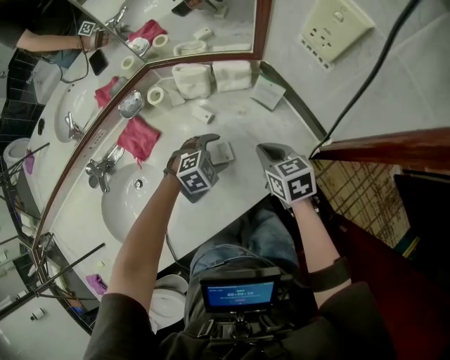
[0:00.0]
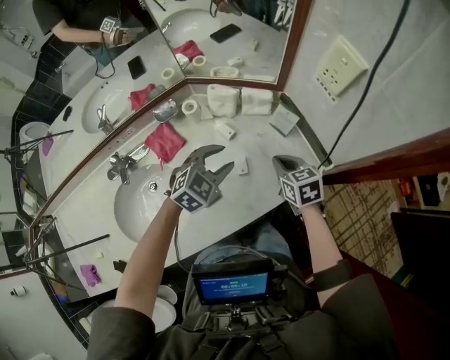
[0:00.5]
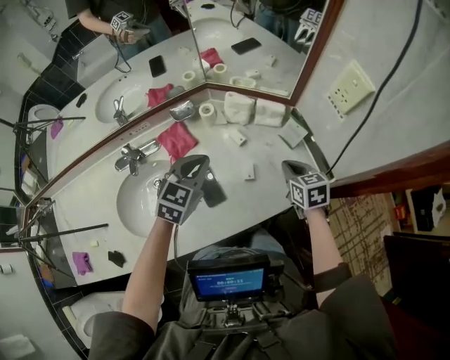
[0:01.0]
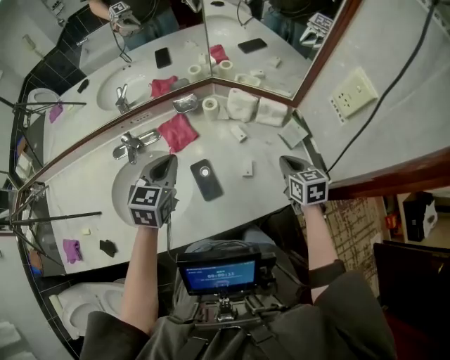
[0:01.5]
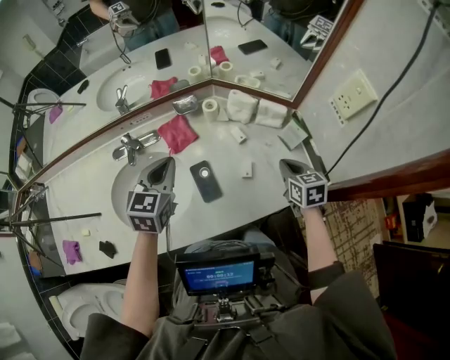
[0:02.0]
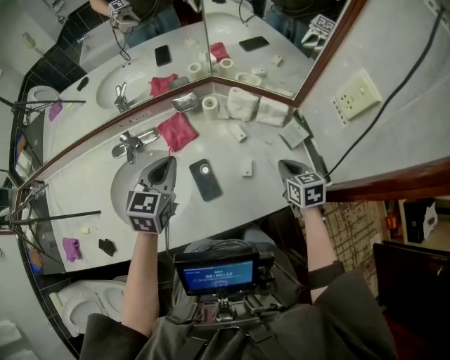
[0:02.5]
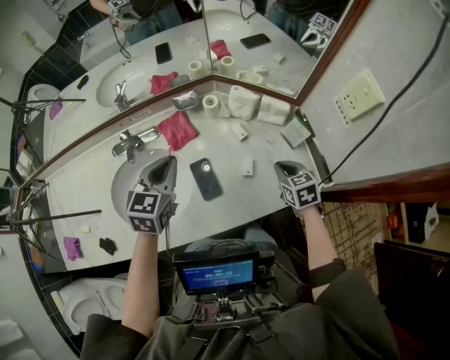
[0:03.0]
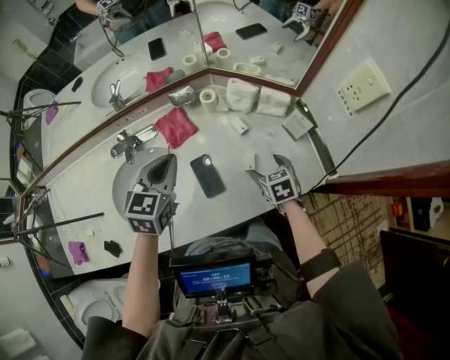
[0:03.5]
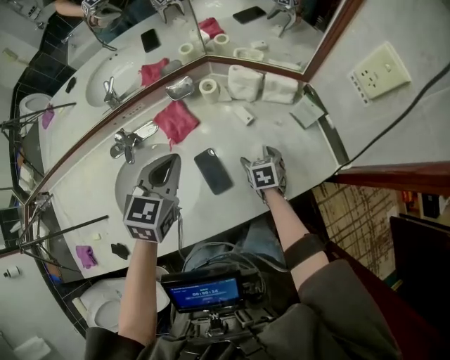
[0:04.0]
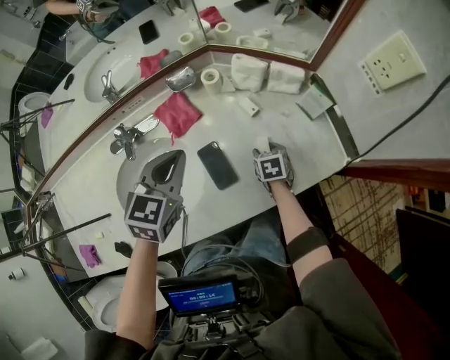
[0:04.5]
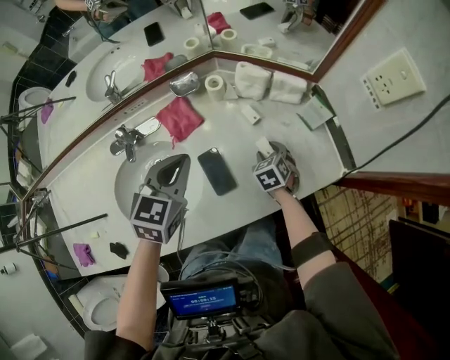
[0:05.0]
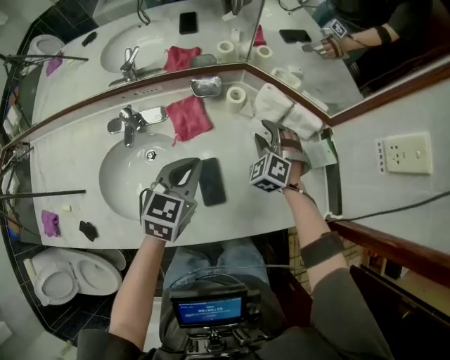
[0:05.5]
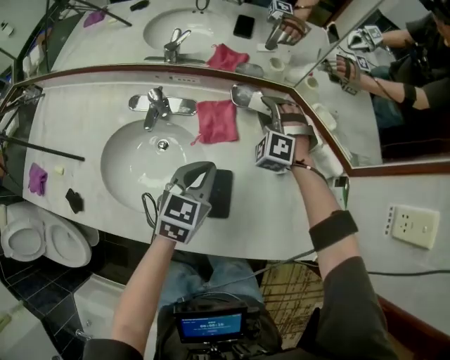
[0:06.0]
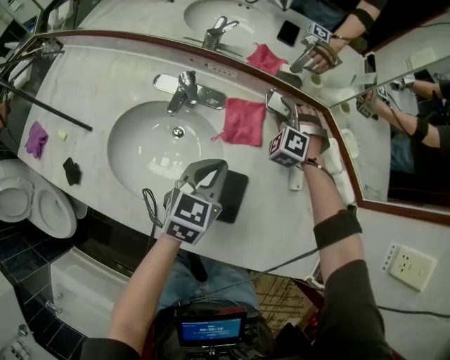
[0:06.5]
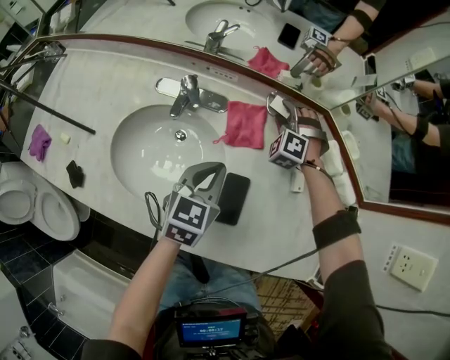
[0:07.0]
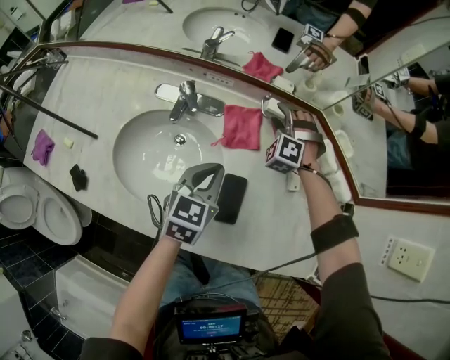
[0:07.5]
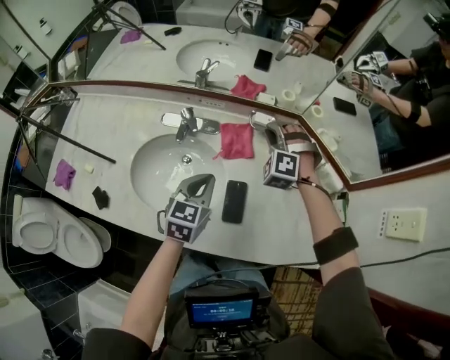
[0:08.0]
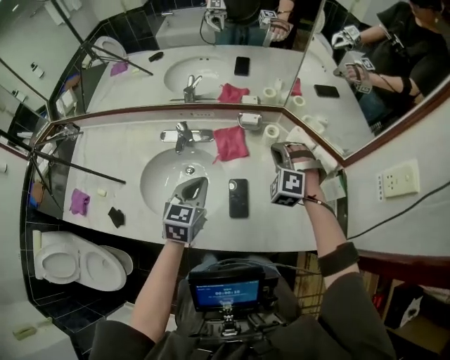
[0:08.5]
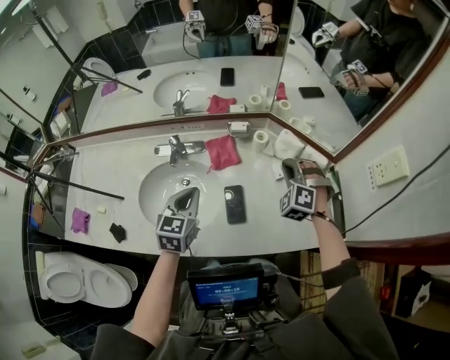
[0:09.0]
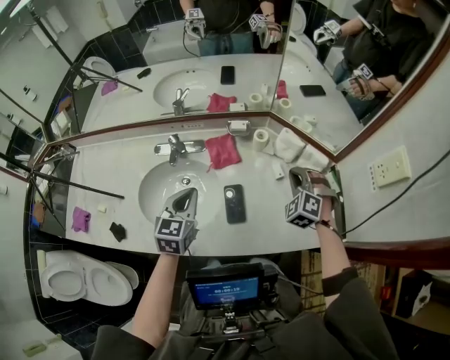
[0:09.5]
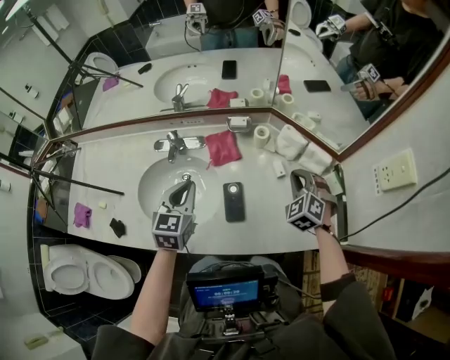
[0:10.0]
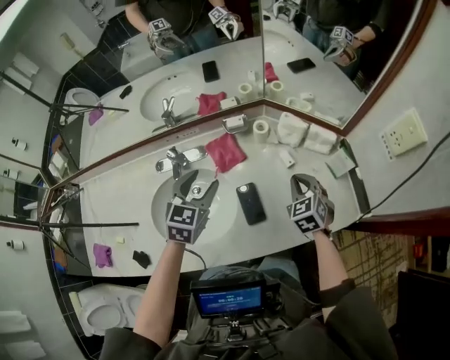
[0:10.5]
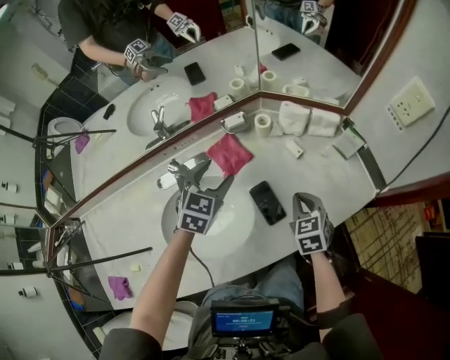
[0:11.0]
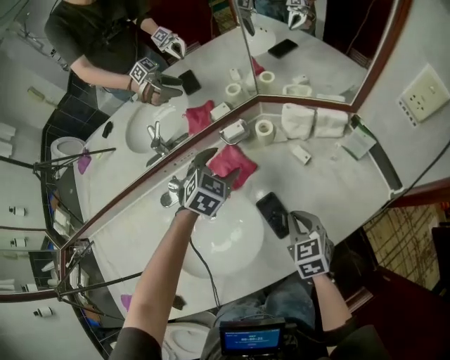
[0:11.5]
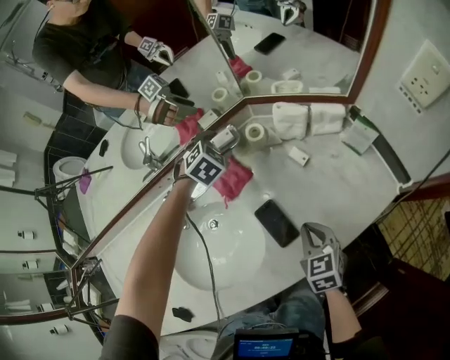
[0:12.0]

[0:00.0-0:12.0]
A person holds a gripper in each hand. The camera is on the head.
0:00.0 to 0:02.0: The right gripper is displaced upward by some 5 cm. The left gripper shifts roughly 30 cm upward, tips its fingers upward by about 30 degrees, and closes up.
0:02.0 to 0:04.0: The right gripper shifts approximately 20 cm downward and to the left, and opens its fingers.
0:04.0 to 0:06.0: The right gripper heads forward, to the left and upward, covering roughly 30 cm, rolls counterclockwise, seen from behind, by roughly 100 degrees, and closes. The left gripper goes some 10 cm downward, and changes its angle by about 20 degrees.
0:06.0 to 0:08.0: The right gripper moves upward and backward, approximately 10 cm. The left gripper goes about 5 cm to the left.
0:08.0 to 0:10.0: The right gripper shifts about 25 cm to the right and backward, and rotates roughly 40 degrees. Meanwhile the left gripper heads upward, covering approximately 5 cm.
0:10.0 to 0:12.0: The right gripper is displaced backward, downward and to the left by roughly 20 cm, and twists about 60 degrees clockwise, seen from behind, while the left gripper is displaced forward and downward by approximately 35 cm, rotates around the line of its fingers by approximately 60 degrees, clockwise from behind, and opens.

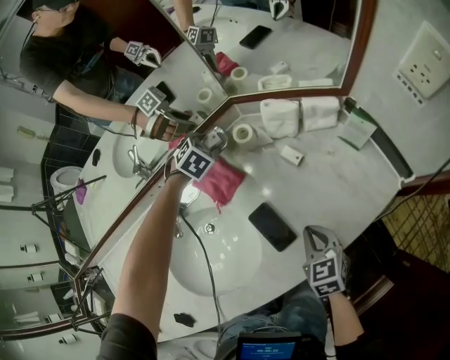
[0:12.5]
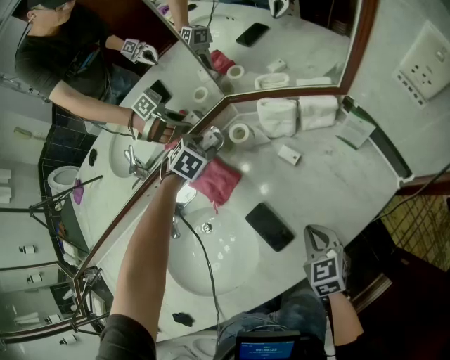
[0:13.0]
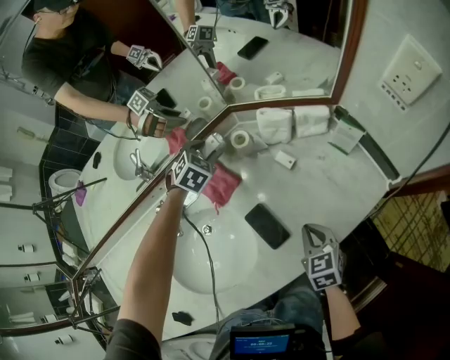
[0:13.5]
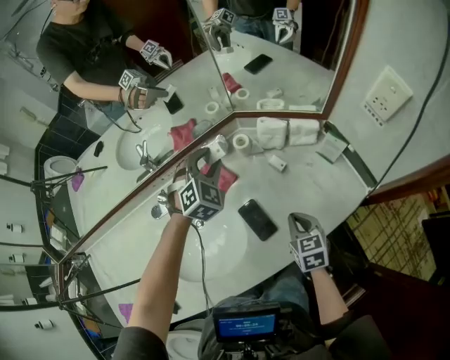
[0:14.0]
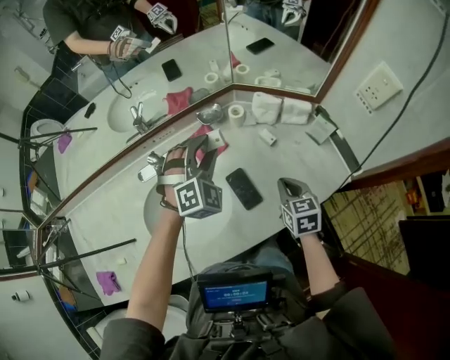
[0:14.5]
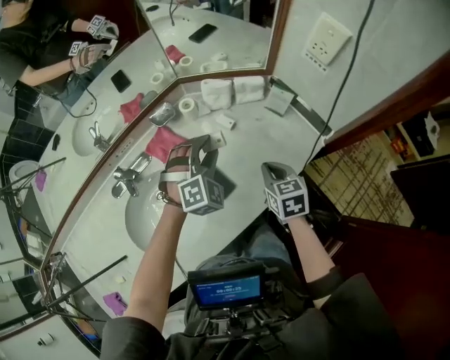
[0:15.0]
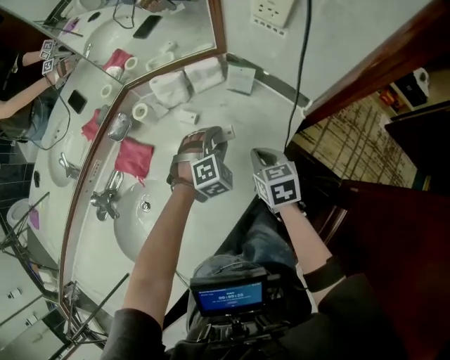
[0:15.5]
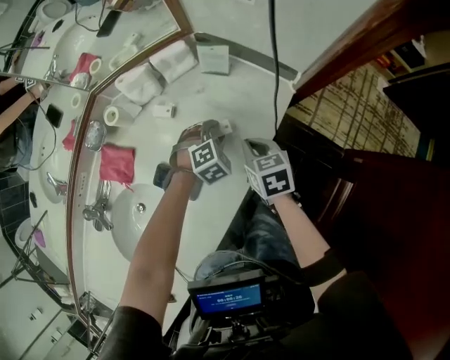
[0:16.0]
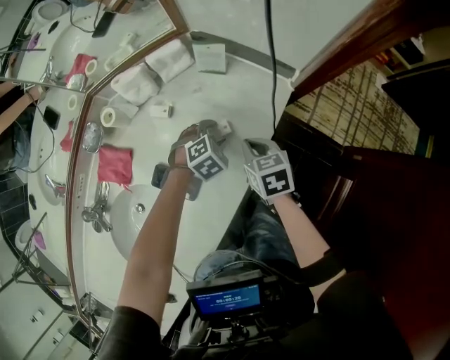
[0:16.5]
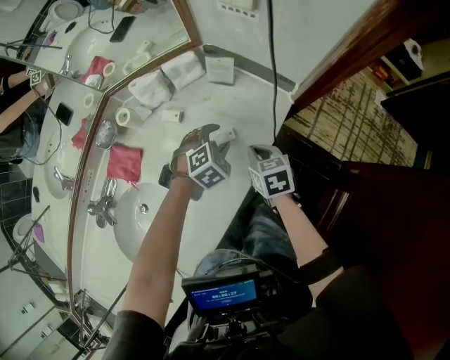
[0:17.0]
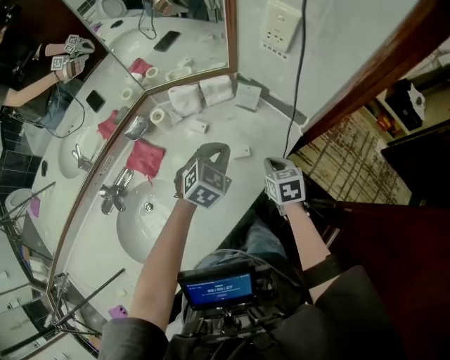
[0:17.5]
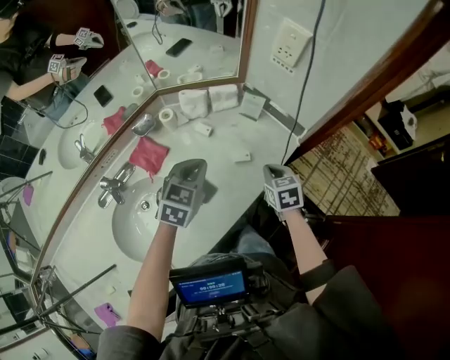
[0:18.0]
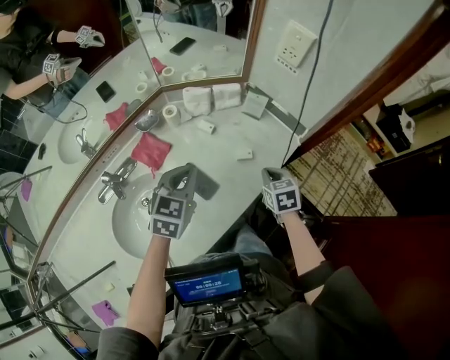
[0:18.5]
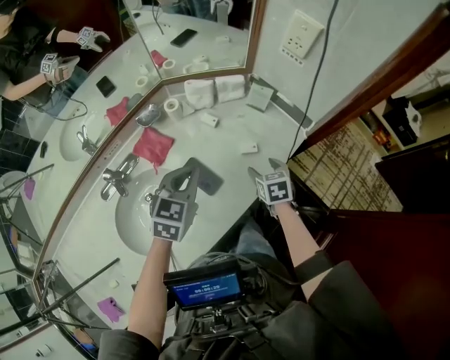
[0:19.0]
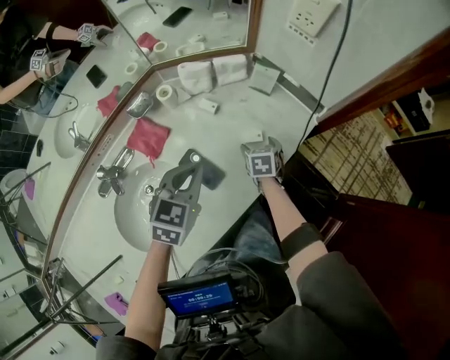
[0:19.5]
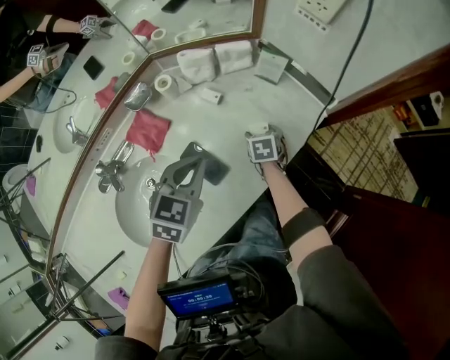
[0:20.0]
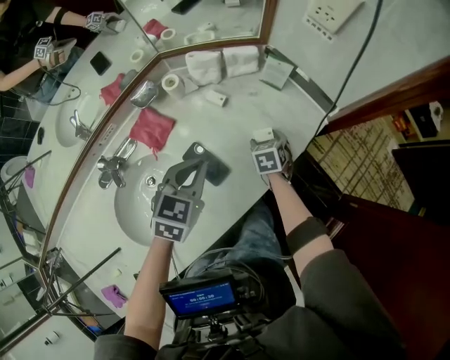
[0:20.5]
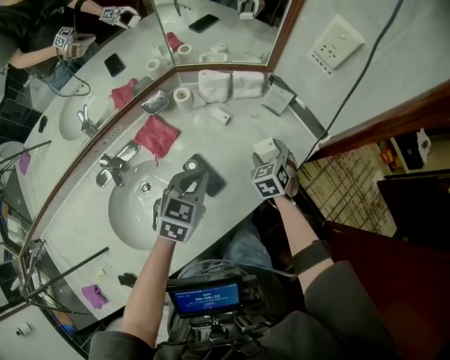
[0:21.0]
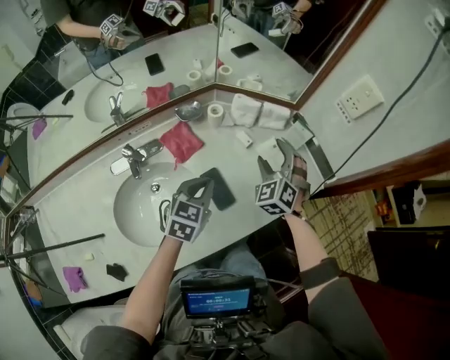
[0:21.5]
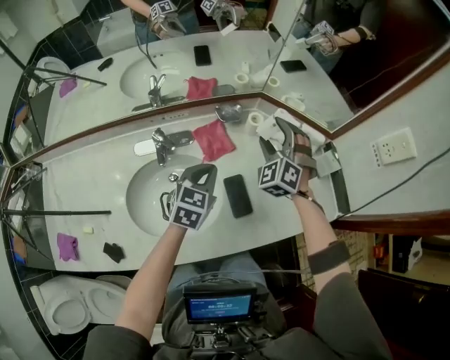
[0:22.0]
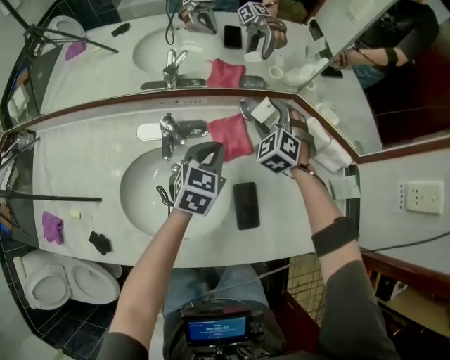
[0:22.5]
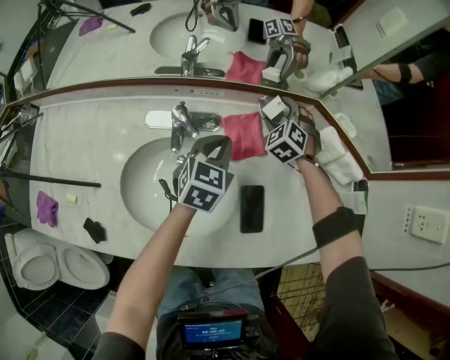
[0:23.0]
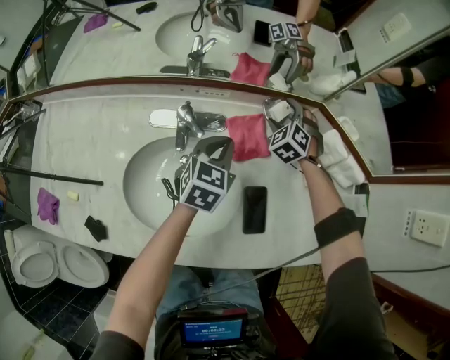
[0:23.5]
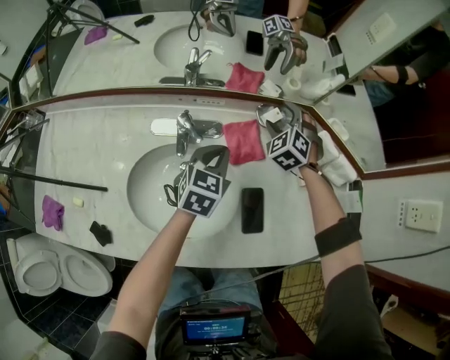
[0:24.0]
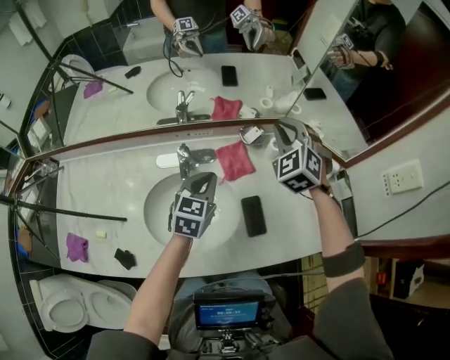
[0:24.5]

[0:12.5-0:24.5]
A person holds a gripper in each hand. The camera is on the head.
0:12.5 to 0:14.5: The left gripper shifts about 30 cm upward and backward, and tilts its fingers roughly 40 degrees upward, while the right gripper travels upward by about 10 cm.
0:14.5 to 0:16.5: The left gripper shifts approximately 30 cm downward, and tilts its fingers about 40 degrees downward. The right gripper changes place by approximately 20 cm, and changes its angle by some 30 degrees.
0:16.5 to 0:18.5: The left gripper shifts some 35 cm upward, to the left and backward, angles its fingers upward, by about 40 degrees, and closes up, while the right gripper is displaced upward by roughly 10 cm.
0:18.5 to 0:20.5: The right gripper moves downward and forward, roughly 15 cm, and opens up. Meanwhile the left gripper moves downward, approximately 5 cm.
0:20.5 to 0:22.5: The right gripper shifts by about 40 cm, and rolls counterclockwise, seen from behind, by approximately 80 degrees, while the left gripper moves about 25 cm, and swivels some 40 degrees.
0:22.5 to 0:24.5: The right gripper moves upward, some 20 cm, and closes. The left gripper moves upward and backward, about 10 cm.

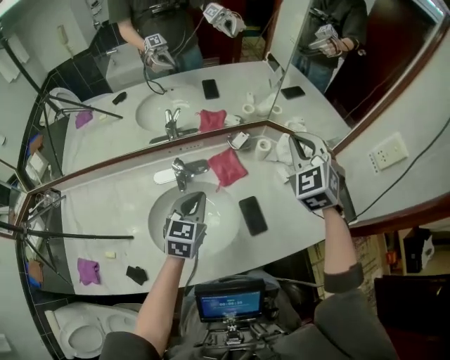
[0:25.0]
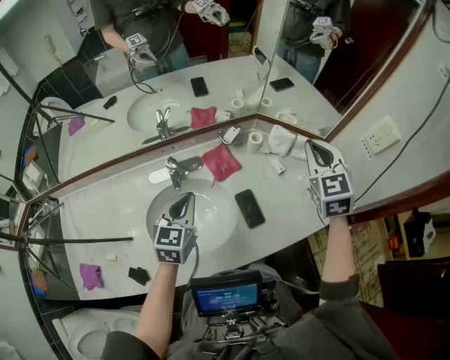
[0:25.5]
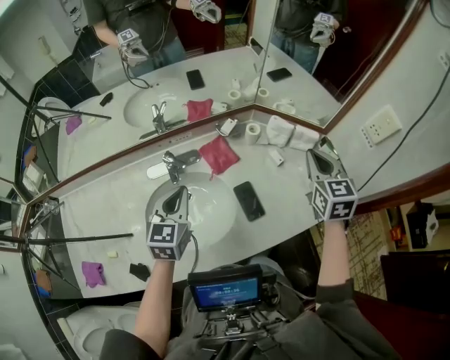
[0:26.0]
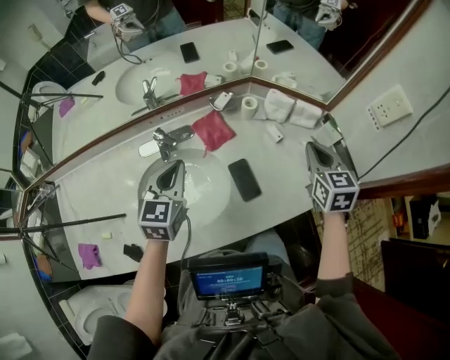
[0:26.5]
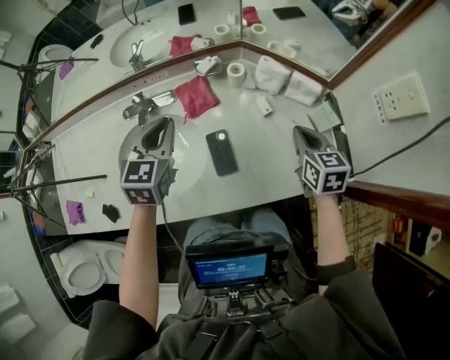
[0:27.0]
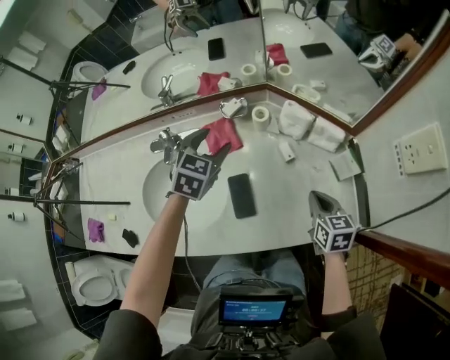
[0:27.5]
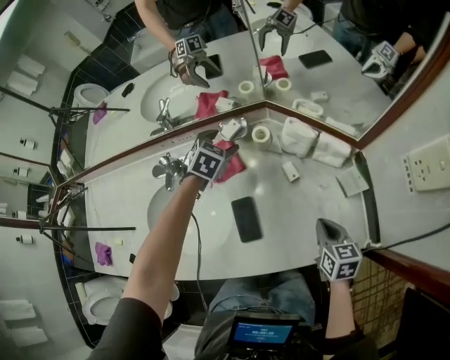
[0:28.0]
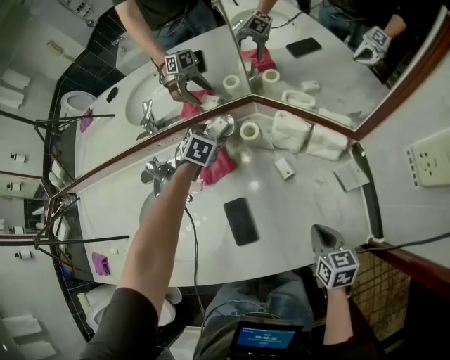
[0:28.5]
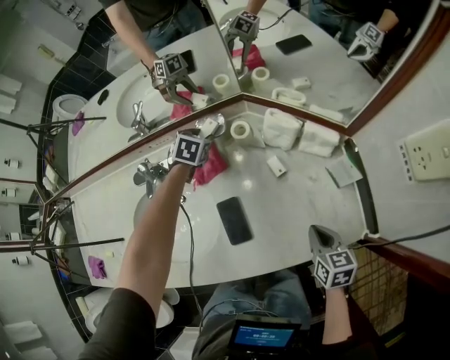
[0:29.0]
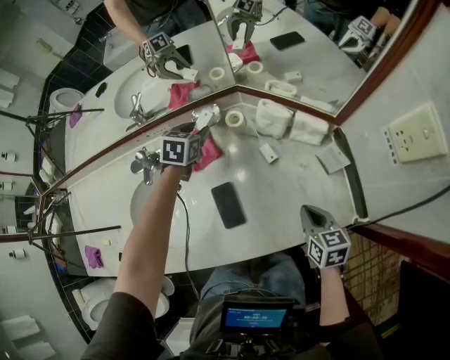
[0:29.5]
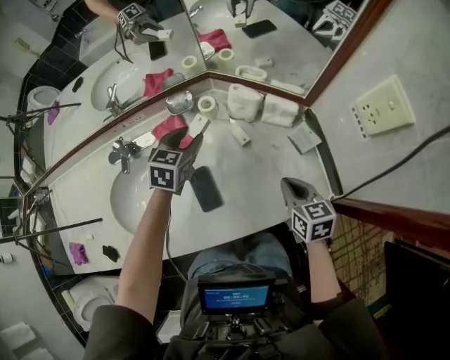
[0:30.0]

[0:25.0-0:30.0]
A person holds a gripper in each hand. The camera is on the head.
0:25.0 to 0:27.5: The right gripper is displaced downward and to the right by about 35 cm, and rotates around the line of its fingers by roughly 60 degrees, clockwise from behind; the left gripper heads to the right and forward, covering roughly 20 cm, and opens up.
0:27.5 to 0:30.0: The left gripper is displaced to the right by roughly 5 cm, and travels downward and back again, approximately 15 cm each way.
